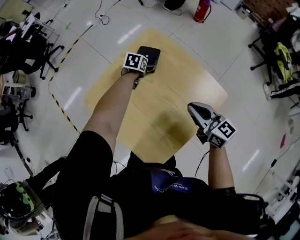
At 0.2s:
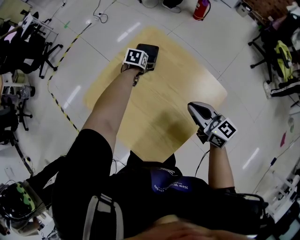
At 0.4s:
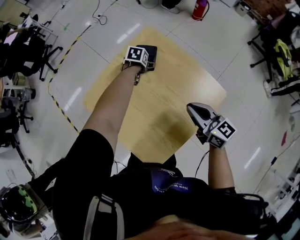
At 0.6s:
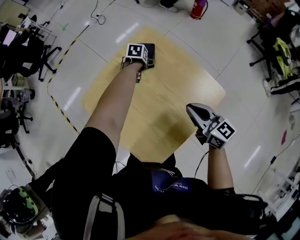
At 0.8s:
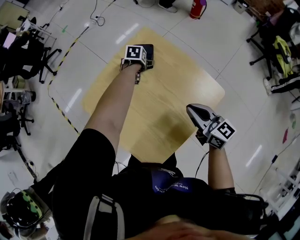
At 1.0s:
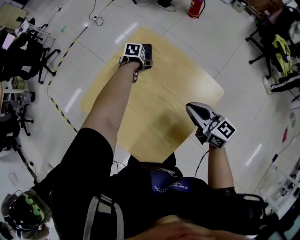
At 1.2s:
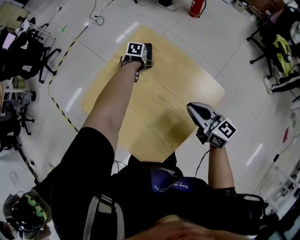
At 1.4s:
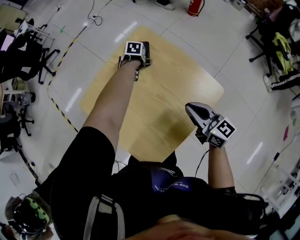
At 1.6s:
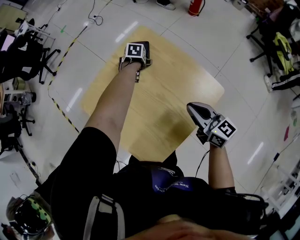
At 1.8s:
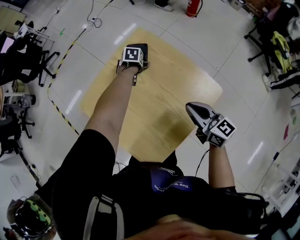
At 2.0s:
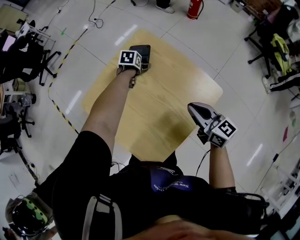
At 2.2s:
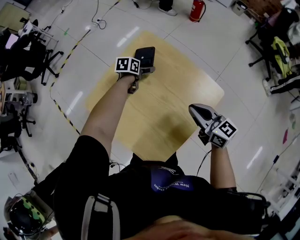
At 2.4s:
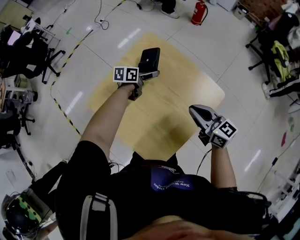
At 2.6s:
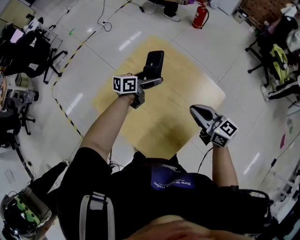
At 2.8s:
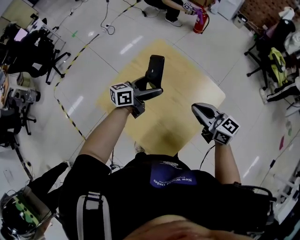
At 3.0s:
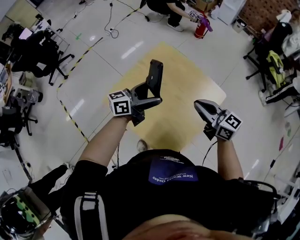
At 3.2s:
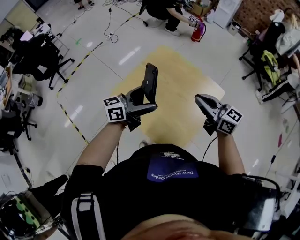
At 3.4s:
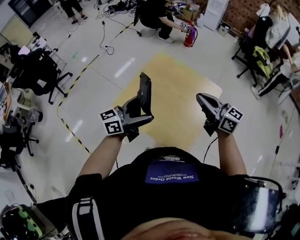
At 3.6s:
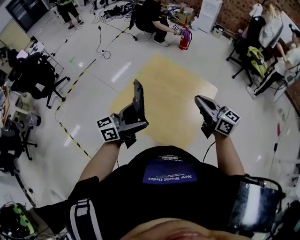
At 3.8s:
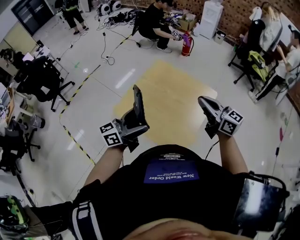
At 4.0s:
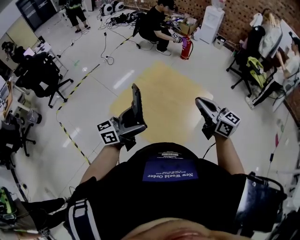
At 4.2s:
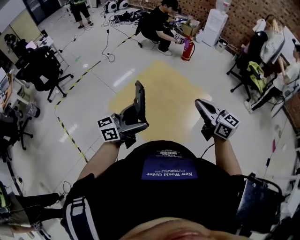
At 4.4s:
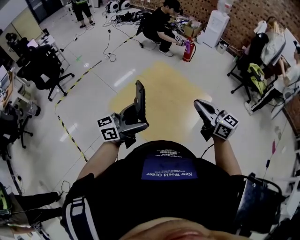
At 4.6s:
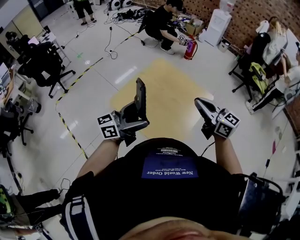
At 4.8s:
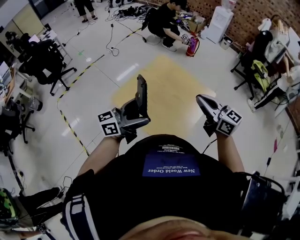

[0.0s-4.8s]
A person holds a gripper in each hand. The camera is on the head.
1.6s to 3.2s: The right gripper moves upward, about 15 cm, while the left gripper moves upward, approximately 35 cm, and tips its fingers upward by approximately 80 degrees.
3.2s to 4.8s: The left gripper is displaced backward and upward by some 15 cm. The right gripper shifts roughly 10 cm upward and backward.

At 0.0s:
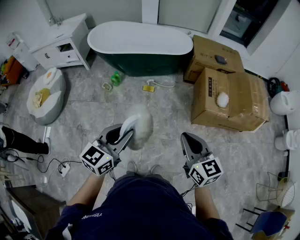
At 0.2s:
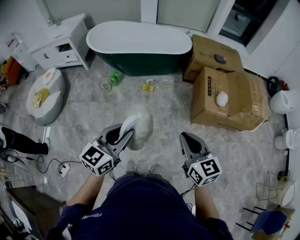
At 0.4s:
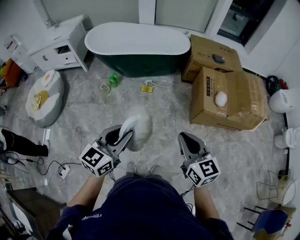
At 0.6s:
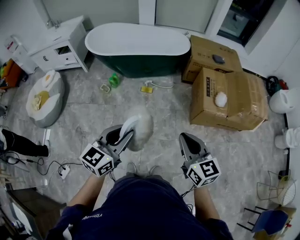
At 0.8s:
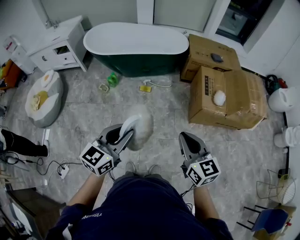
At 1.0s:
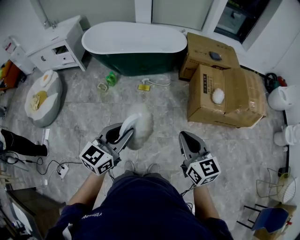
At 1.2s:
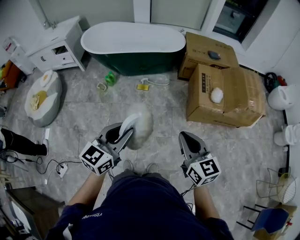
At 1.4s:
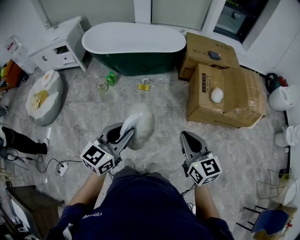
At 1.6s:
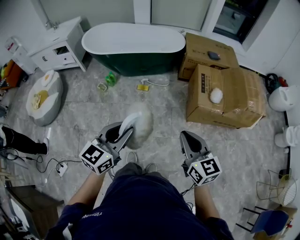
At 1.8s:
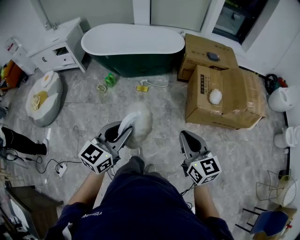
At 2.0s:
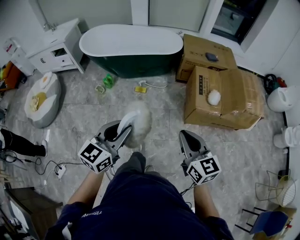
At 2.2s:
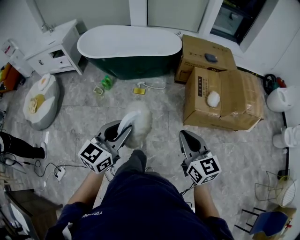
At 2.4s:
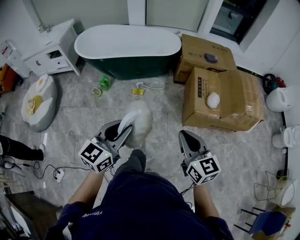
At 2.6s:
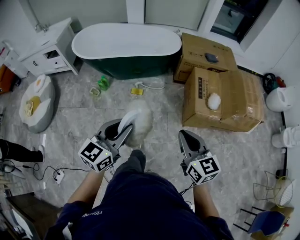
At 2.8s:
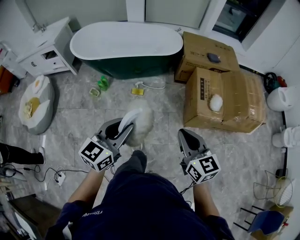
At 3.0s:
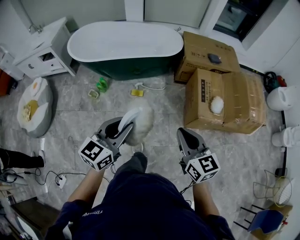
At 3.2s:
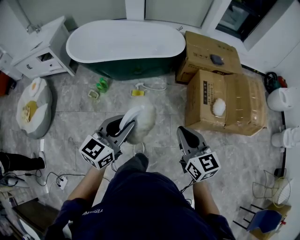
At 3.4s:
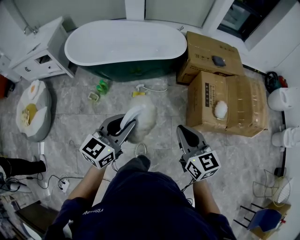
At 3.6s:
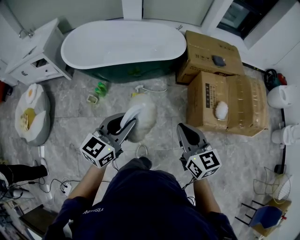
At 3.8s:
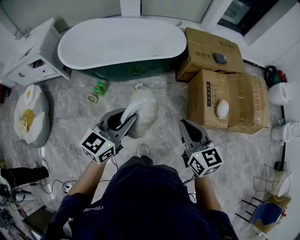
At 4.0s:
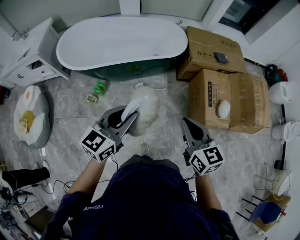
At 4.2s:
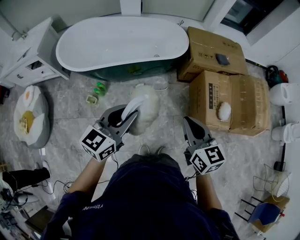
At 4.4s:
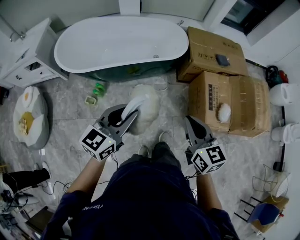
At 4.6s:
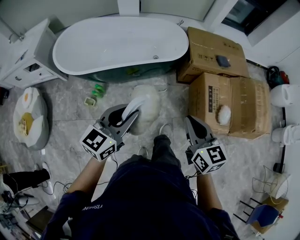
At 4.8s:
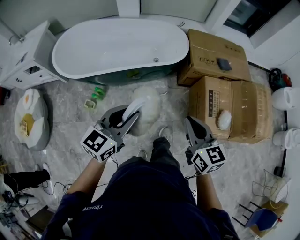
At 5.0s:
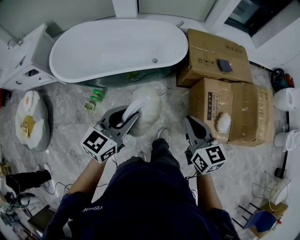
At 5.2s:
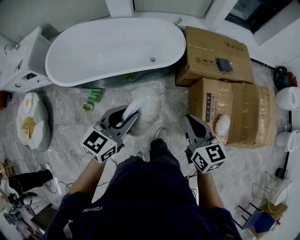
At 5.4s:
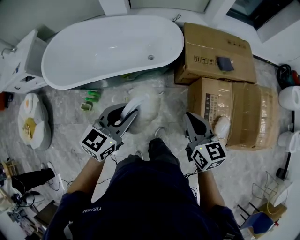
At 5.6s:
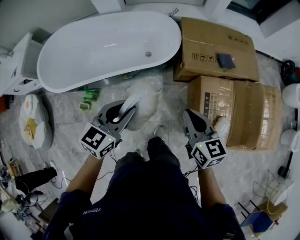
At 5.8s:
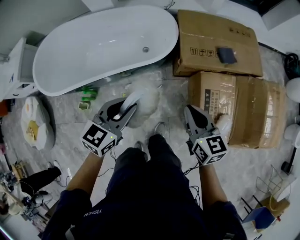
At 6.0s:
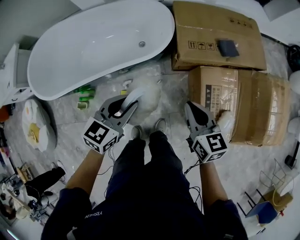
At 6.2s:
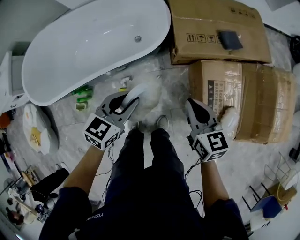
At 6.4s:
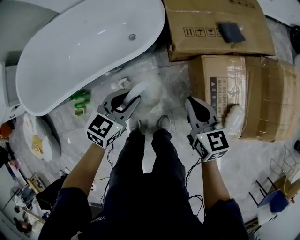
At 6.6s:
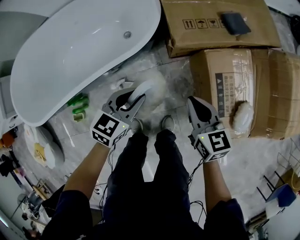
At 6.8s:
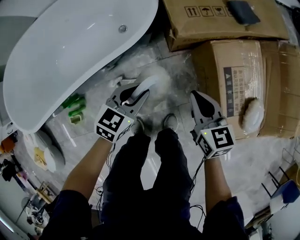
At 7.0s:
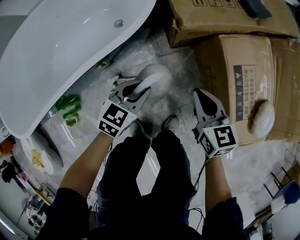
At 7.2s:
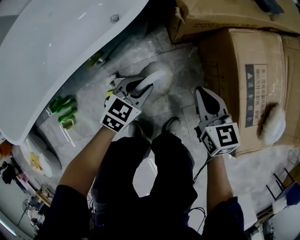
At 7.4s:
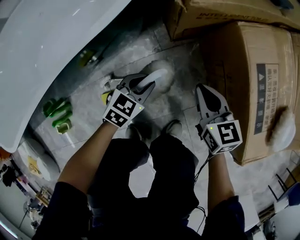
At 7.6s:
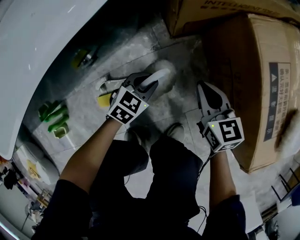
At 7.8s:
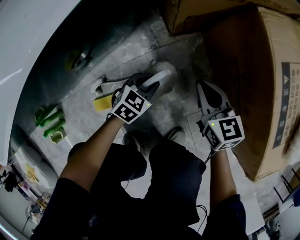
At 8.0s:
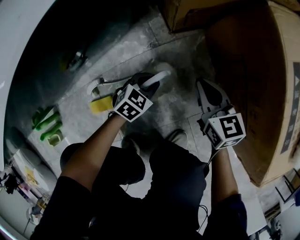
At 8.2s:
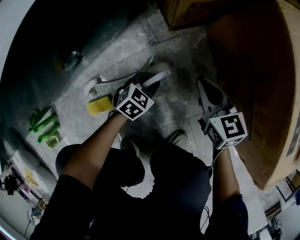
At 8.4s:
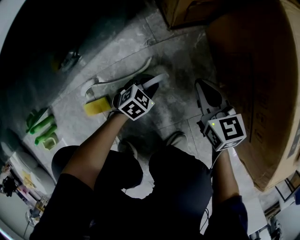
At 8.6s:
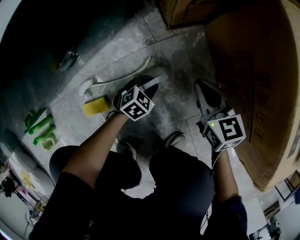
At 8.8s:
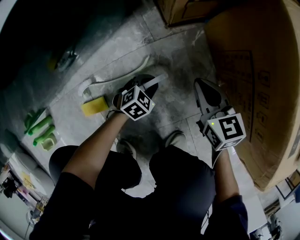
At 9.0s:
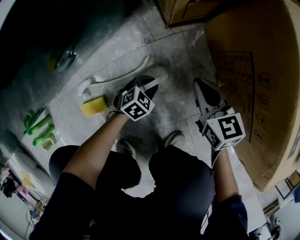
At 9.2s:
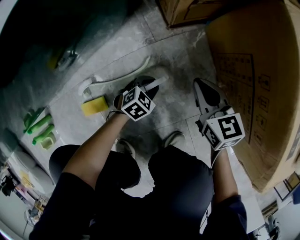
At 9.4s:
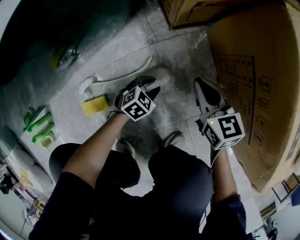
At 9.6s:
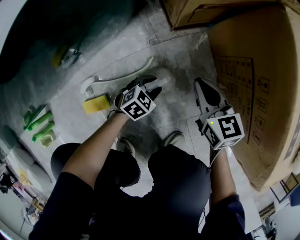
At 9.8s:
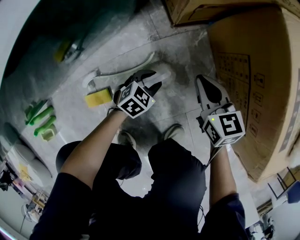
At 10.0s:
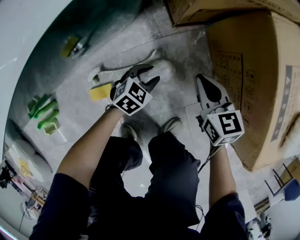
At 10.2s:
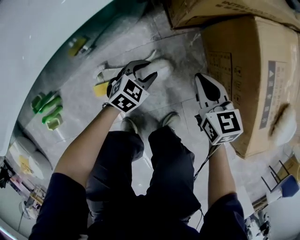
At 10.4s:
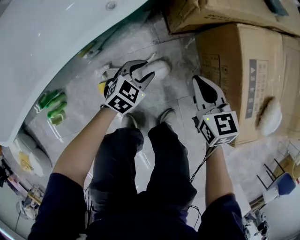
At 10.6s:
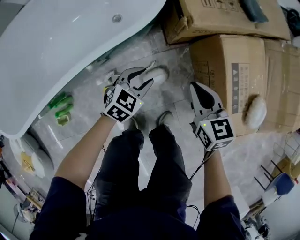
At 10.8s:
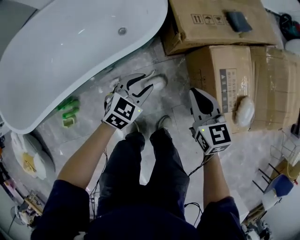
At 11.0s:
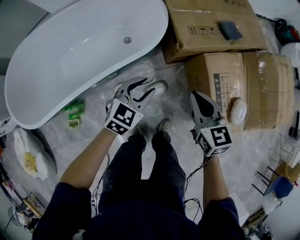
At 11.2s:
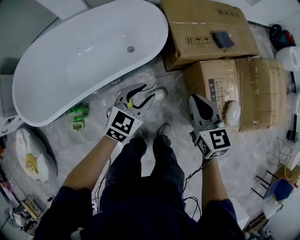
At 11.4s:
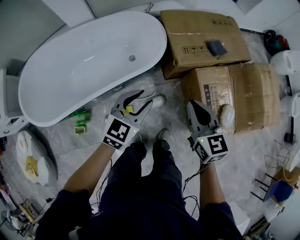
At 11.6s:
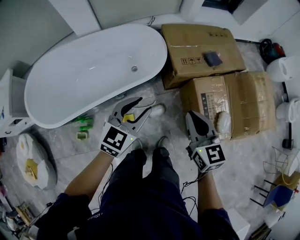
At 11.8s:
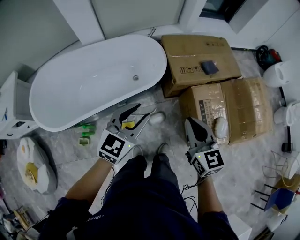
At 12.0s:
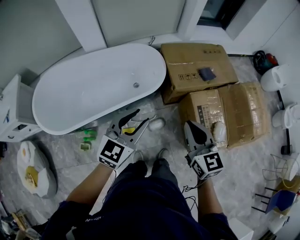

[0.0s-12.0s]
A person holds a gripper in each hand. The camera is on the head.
0.0s to 1.6s: Both grippers travel together to the right, some 10 cm.
1.6s to 3.0s: The two grippers go roughly 20 cm forward.
3.0s to 4.4s: Both grippers move forward, some 25 cm.
4.4s to 6.0s: The grippers both shift forward, to the right and downward by approximately 40 cm. The left gripper changes its angle by approximately 20 degrees.
6.0s to 7.6s: The grippers both shift downward by roughly 60 cm. The left gripper changes its angle by roughly 30 degrees.
7.6s to 9.0s: The right gripper goes about 15 cm downward. Meanwhile the left gripper travels downward by roughly 20 cm.
9.0s to 10.4s: The grippers both shift upward by roughly 25 cm.
10.4s to 12.0s: Both grippers travel together upward, about 60 cm. The right gripper swivels approximately 20 degrees. Meanwhile the left gripper tilts its fingers about 30 degrees upward.

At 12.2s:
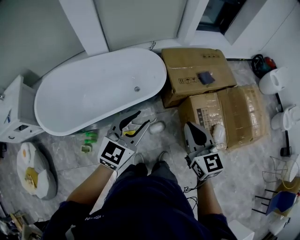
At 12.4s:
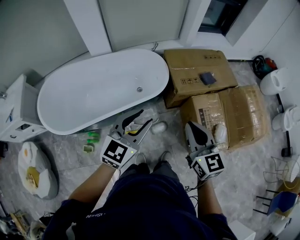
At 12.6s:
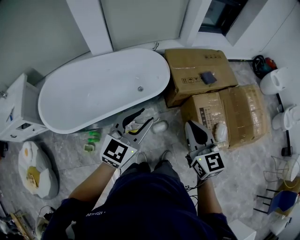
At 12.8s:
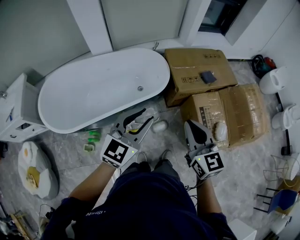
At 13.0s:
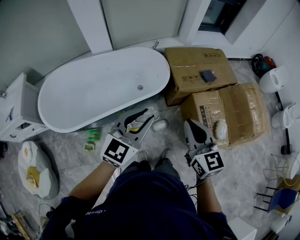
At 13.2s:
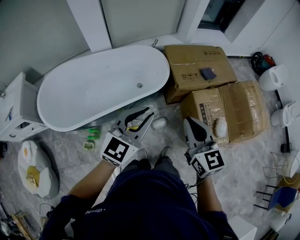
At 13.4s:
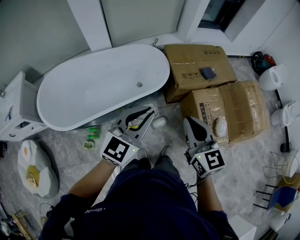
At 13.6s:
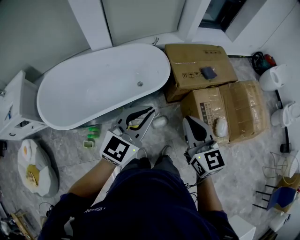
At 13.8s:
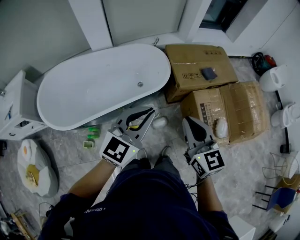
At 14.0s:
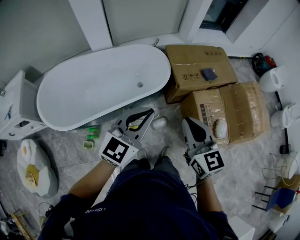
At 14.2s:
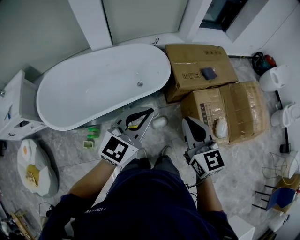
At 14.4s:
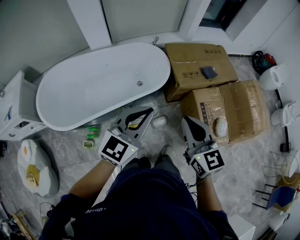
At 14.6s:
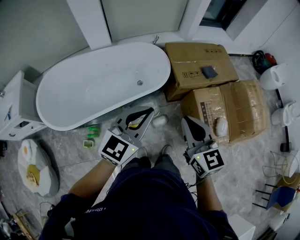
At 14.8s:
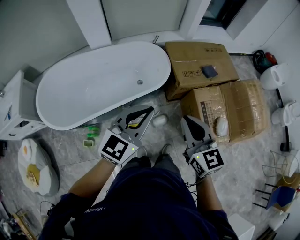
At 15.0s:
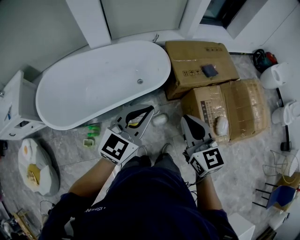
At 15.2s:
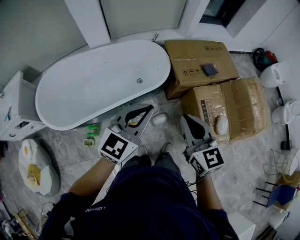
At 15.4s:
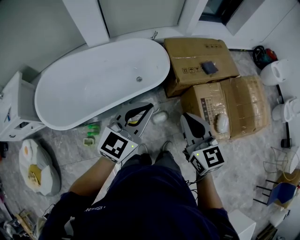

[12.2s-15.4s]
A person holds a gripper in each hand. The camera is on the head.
12.2s to 13.8s: The left gripper changes place by some 5 cm, and closes up. Meanwhile the right gripper travels to the left by approximately 5 cm.
13.8s to 15.4s: The grippers make only small movements.

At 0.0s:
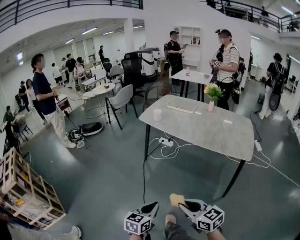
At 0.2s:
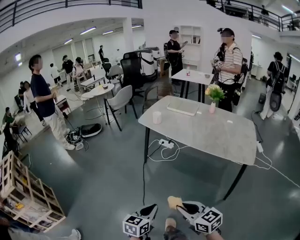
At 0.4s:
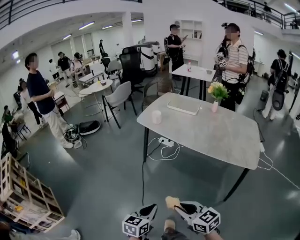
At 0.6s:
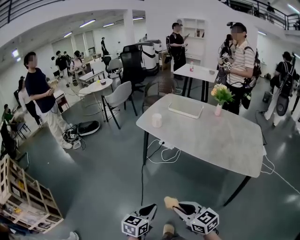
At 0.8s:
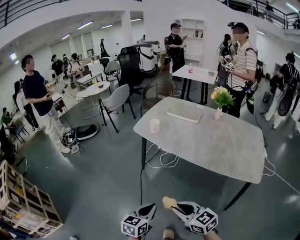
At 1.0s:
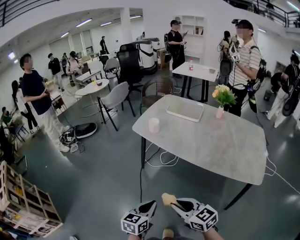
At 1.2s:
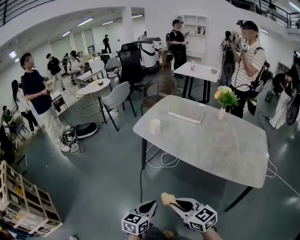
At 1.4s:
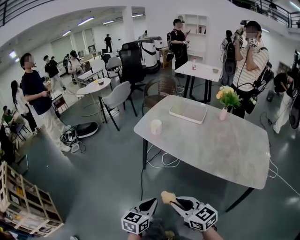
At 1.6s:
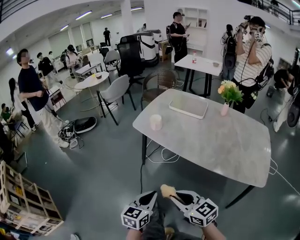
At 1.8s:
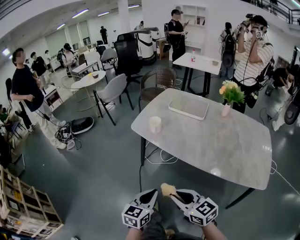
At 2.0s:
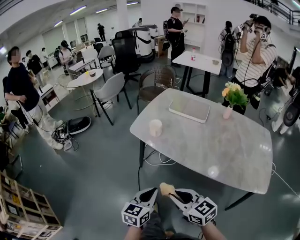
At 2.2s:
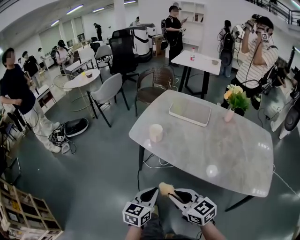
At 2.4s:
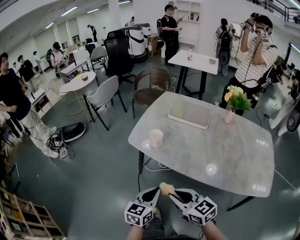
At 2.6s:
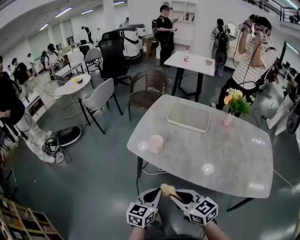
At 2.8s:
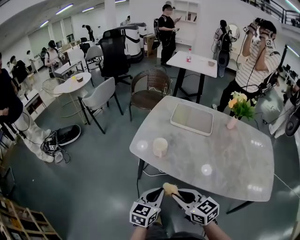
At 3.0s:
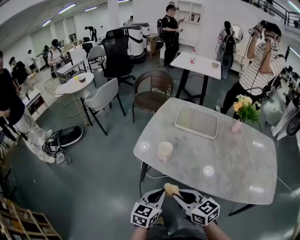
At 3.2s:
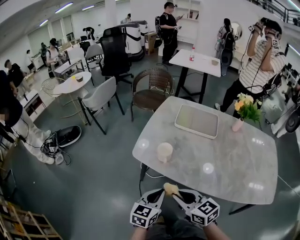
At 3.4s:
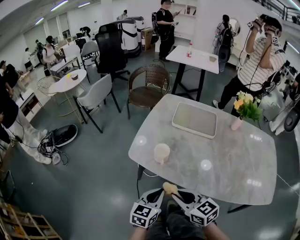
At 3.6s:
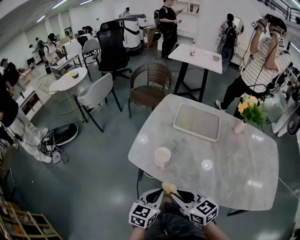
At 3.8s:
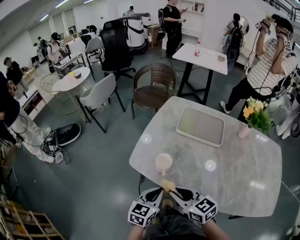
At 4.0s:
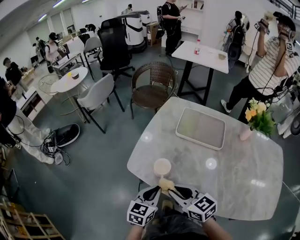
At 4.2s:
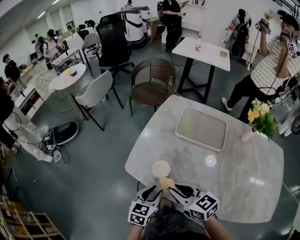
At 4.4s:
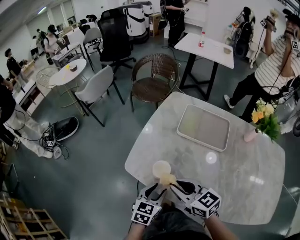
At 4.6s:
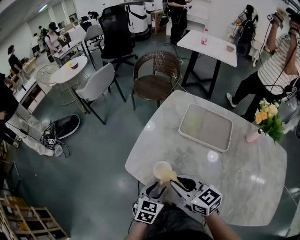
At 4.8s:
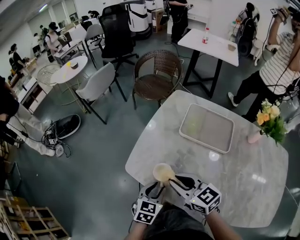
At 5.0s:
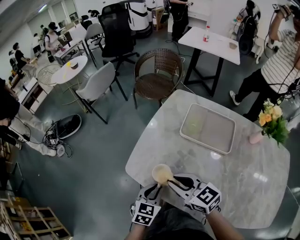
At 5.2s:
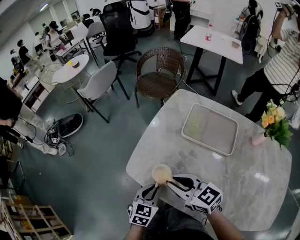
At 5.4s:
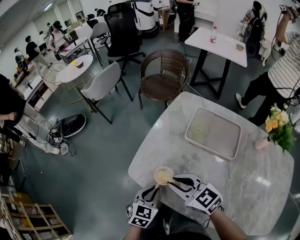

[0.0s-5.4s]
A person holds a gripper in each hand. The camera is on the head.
0.0s to 1.4s: Both grippers move forward, about 25 cm.
1.4s to 2.8s: The grippers both shift forward by some 25 cm.
2.8s to 4.0s: Both grippers move forward, some 15 cm.
4.0s to 5.4s: The left gripper goes about 5 cm forward, while the right gripper moves forward, roughly 10 cm.
